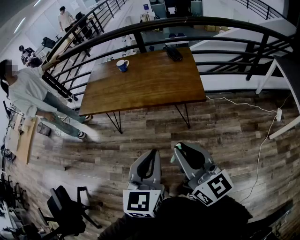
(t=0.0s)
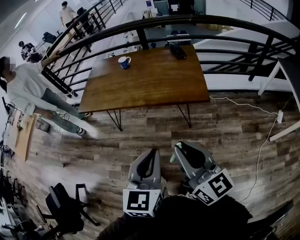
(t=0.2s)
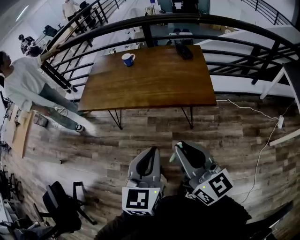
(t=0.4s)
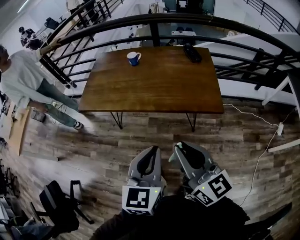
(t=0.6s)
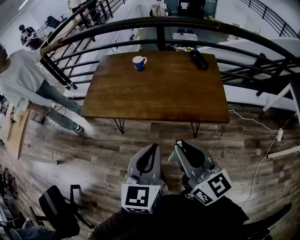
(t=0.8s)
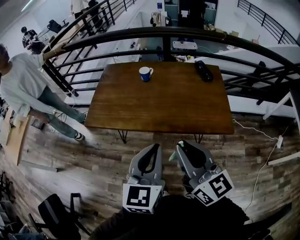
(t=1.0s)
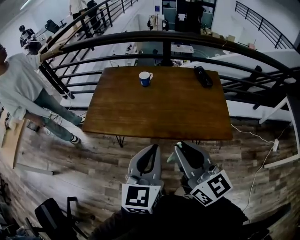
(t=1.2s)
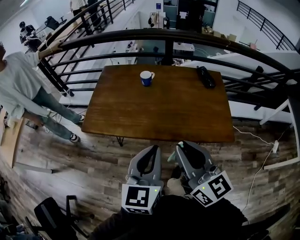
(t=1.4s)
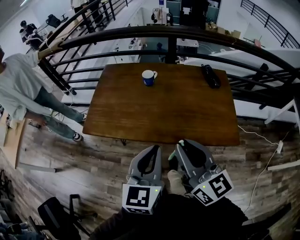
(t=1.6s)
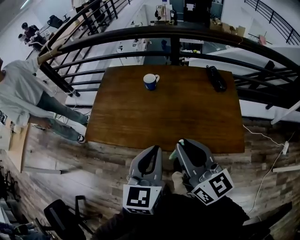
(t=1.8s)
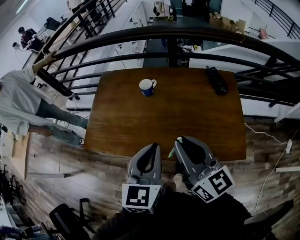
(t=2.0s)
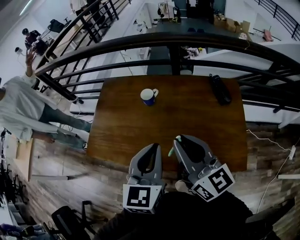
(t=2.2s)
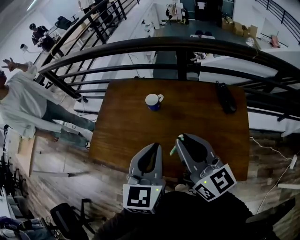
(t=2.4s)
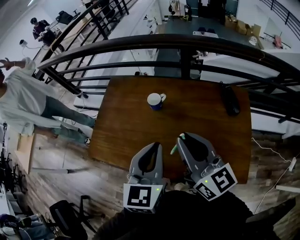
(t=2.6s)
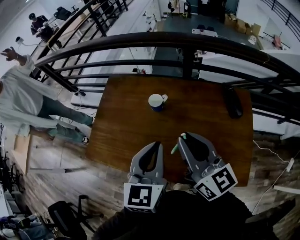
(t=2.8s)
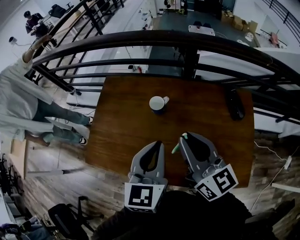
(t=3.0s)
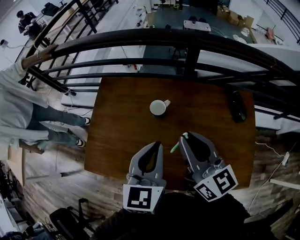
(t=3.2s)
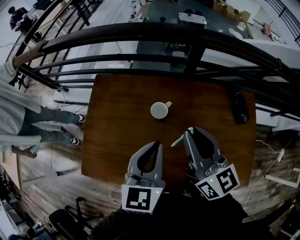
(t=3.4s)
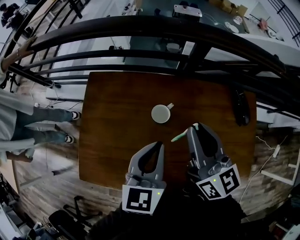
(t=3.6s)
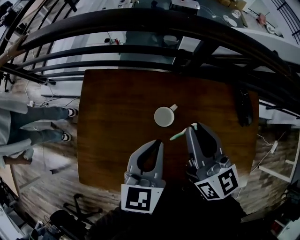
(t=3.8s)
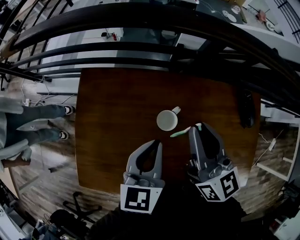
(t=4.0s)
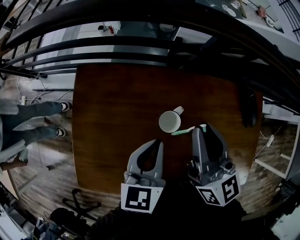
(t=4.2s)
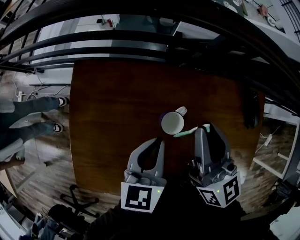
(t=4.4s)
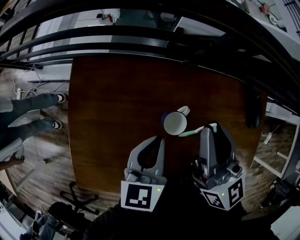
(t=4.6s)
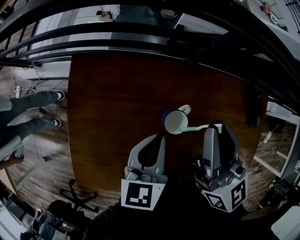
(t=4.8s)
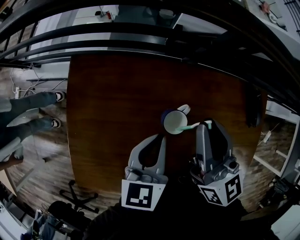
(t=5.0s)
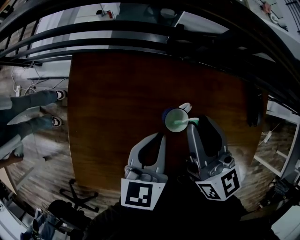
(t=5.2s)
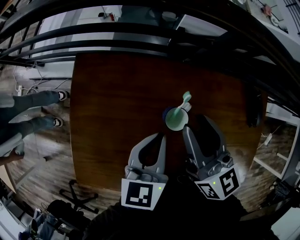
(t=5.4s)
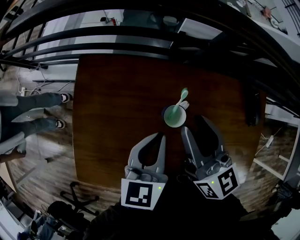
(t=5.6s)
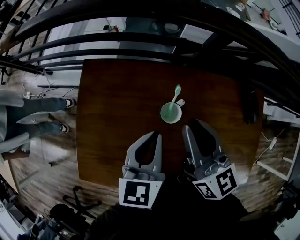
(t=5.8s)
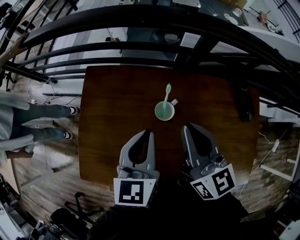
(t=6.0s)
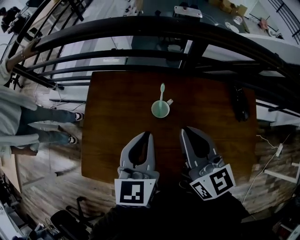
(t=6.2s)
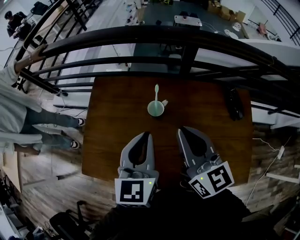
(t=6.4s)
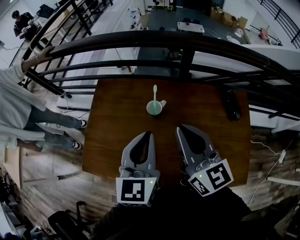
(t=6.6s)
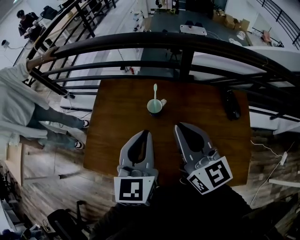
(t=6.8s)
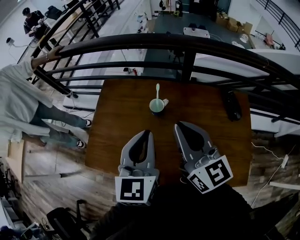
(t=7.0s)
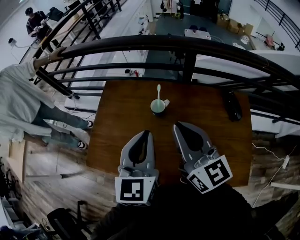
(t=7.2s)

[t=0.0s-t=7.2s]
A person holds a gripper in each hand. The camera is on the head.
t=0.0s to t=1.4s: The grippers both shift forward and to the left by about 35 cm.
t=1.4s to t=2.8s: The grippers both shift forward by about 30 cm.
t=2.8s to t=4.4s: The right gripper moves forward, roughly 25 cm. The left gripper is displaced forward, downward and to the left by roughly 30 cm, and changes its angle by some 20 degrees.
t=4.4s to t=5.8s: The grippers make only small movements.
t=5.8s to t=7.2s: The right gripper heads backward and upward, covering about 20 cm. The left gripper travels upward and backward by some 20 cm, and changes its angle by some 20 degrees.

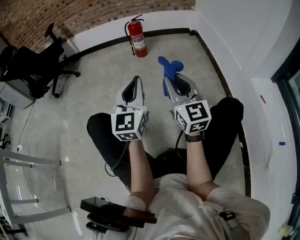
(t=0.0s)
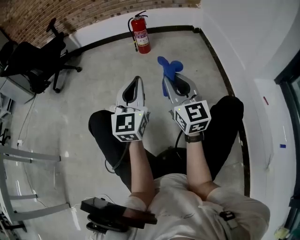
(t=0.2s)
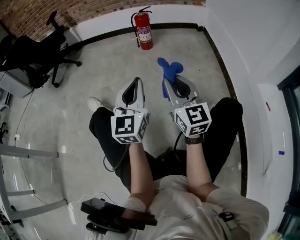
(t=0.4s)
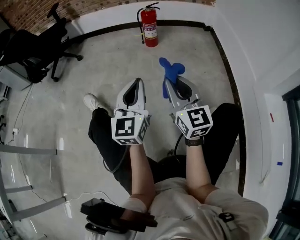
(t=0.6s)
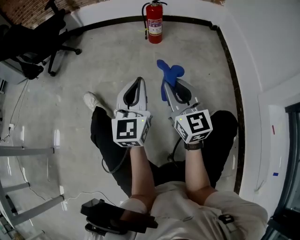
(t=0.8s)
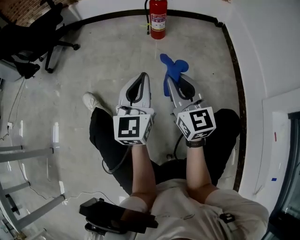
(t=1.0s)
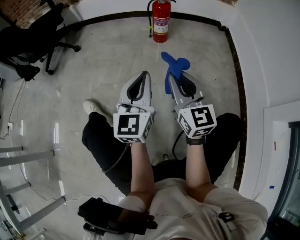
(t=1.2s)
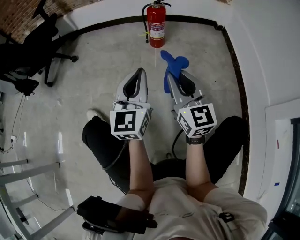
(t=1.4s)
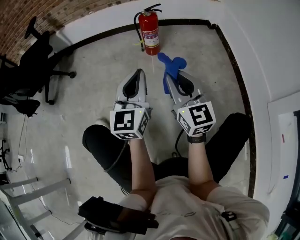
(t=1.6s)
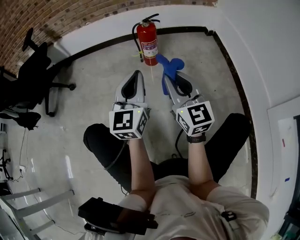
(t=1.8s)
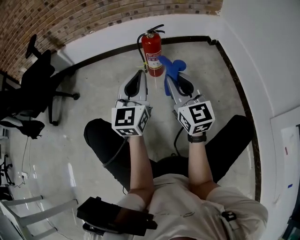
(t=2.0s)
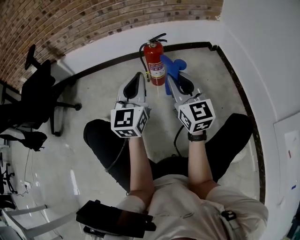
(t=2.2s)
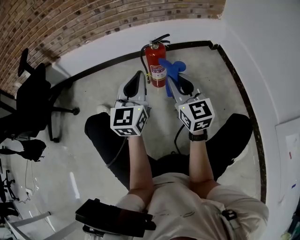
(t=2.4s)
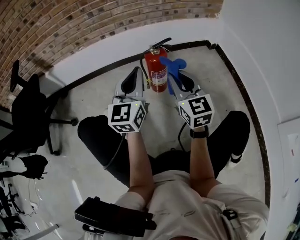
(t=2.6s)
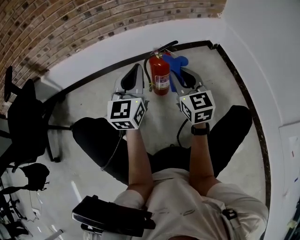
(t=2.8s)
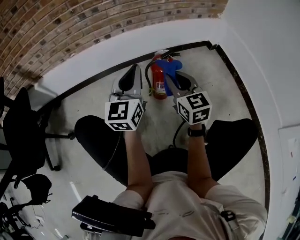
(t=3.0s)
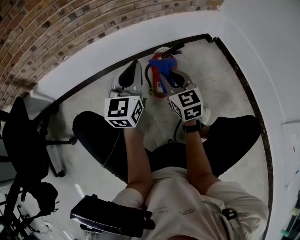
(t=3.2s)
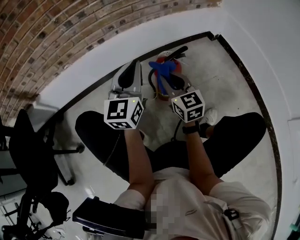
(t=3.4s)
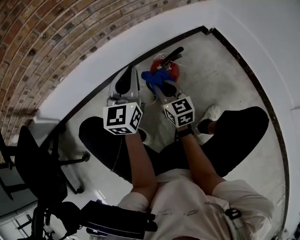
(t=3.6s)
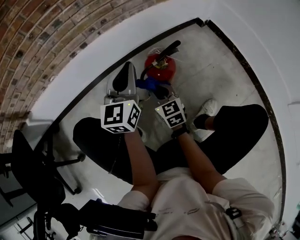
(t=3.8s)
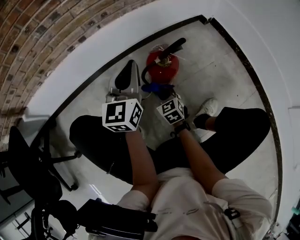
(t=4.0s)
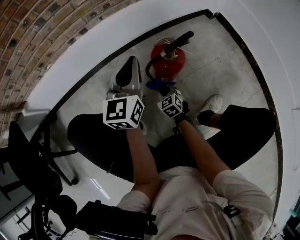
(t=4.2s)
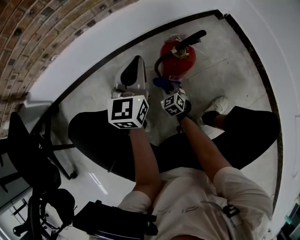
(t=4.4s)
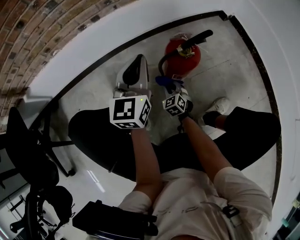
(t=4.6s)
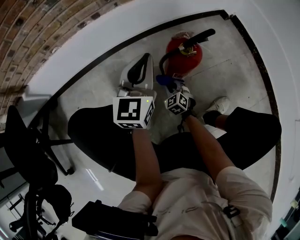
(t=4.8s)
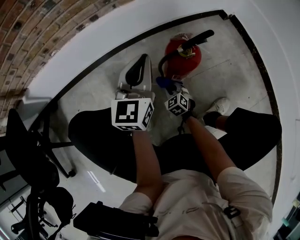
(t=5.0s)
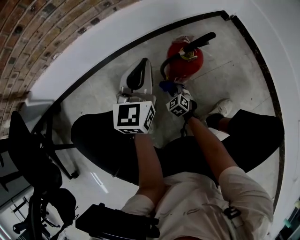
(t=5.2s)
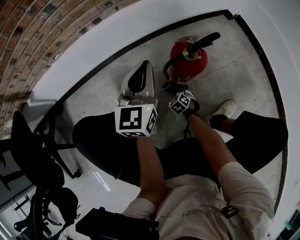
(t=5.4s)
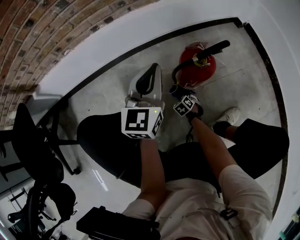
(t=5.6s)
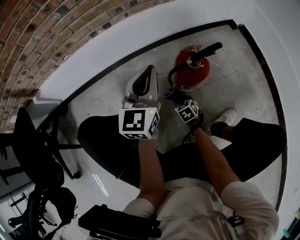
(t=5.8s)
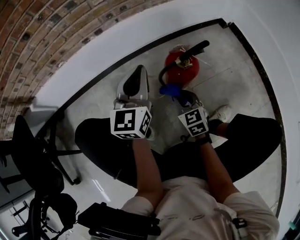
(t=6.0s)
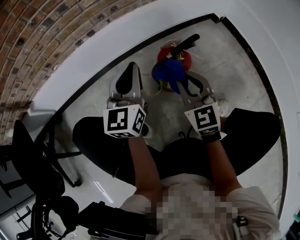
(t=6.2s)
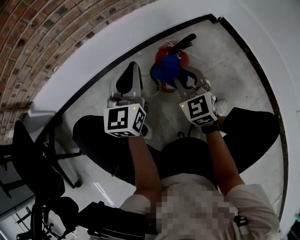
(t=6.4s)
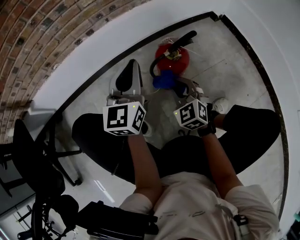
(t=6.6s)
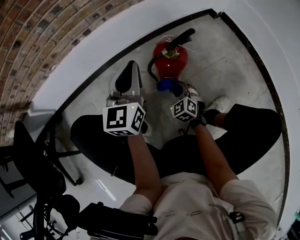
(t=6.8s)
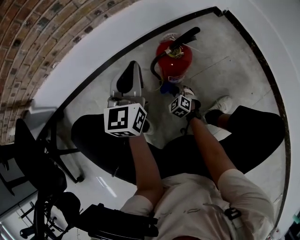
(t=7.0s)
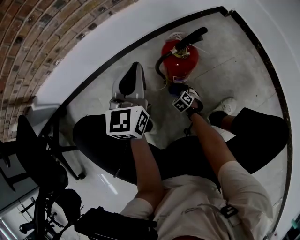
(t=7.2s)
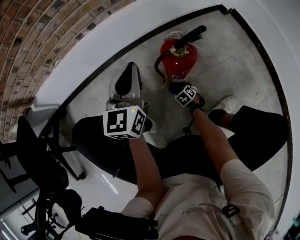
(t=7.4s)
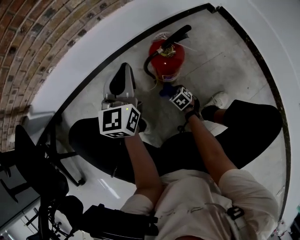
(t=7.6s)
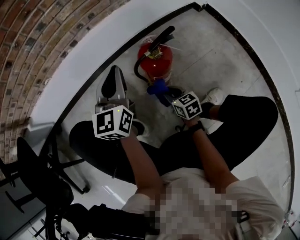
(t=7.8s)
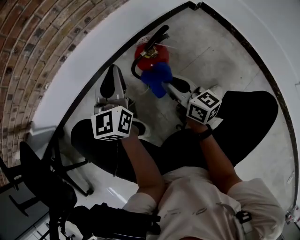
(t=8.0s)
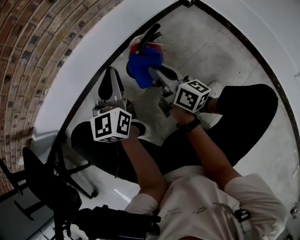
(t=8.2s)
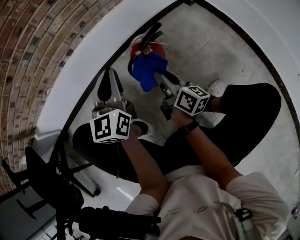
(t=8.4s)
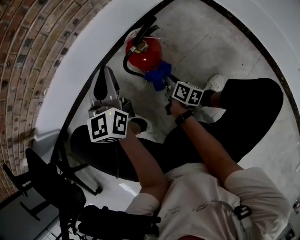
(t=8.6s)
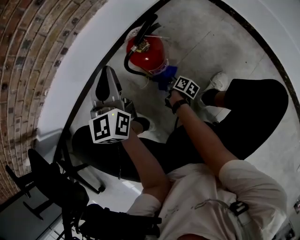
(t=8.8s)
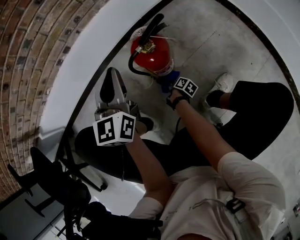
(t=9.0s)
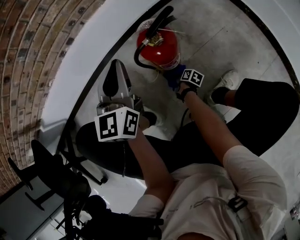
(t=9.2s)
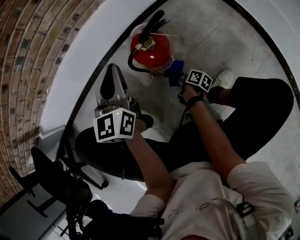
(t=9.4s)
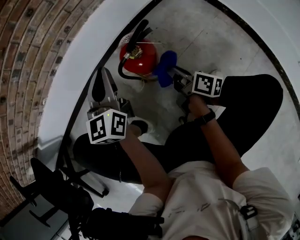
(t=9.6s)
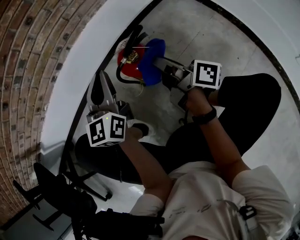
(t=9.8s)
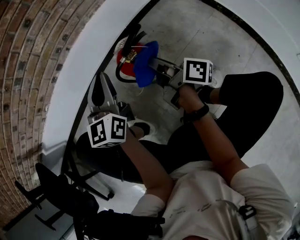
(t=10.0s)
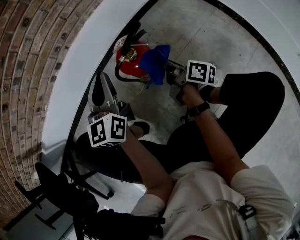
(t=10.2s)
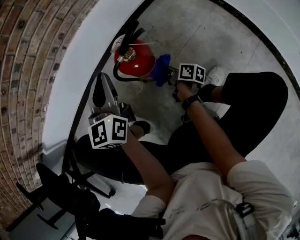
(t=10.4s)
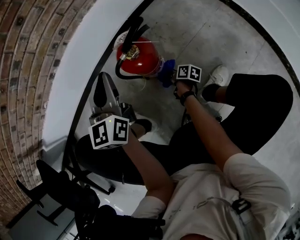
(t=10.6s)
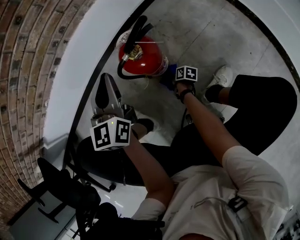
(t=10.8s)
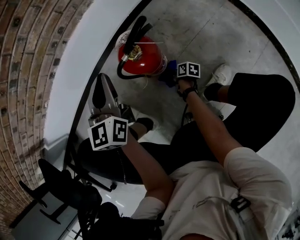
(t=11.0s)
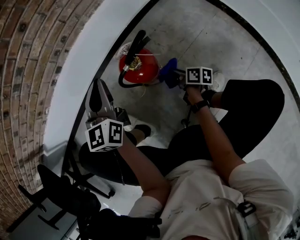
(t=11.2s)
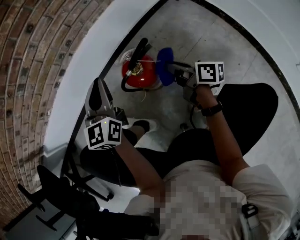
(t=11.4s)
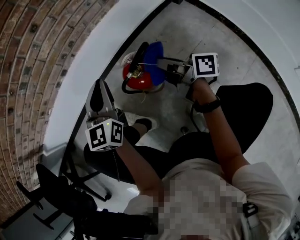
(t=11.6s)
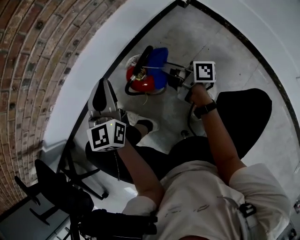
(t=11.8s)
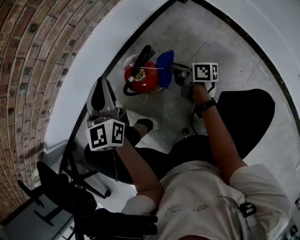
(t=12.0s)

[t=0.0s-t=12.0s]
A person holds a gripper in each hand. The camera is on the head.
t=0.0s to t=1.6s: Both grippers move forward, roughly 30 cm.
t=1.6s to t=3.0s: The pair of grippers is taken forward, roughly 40 cm.
t=3.0s to t=4.4s: The right gripper is displaced downward by approximately 40 cm, and tips its fingers downward by roughly 30 degrees, while the left gripper goes roughly 15 cm downward and forward.
t=4.4s to t=6.0s: The right gripper goes roughly 15 cm upward.
t=6.0s to t=7.6s: The right gripper swings up and down, roughly 40 cm each way, with 2 reversals, and changes its angle by some 30 degrees.
t=7.6s to t=9.0s: The right gripper goes upward and returns, roughly 35 cm each way, and twists approximately 90 degrees clockwise, seen from behind.
t=9.0s to t=10.4s: The right gripper moves upward, roughly 20 cm, and changes its angle by some 30 degrees.
t=10.4s to t=12.0s: The right gripper swings up and down, some 50 cm each way, with 2 reversals, and turns by roughly 20 degrees; the left gripper moves some 5 cm.

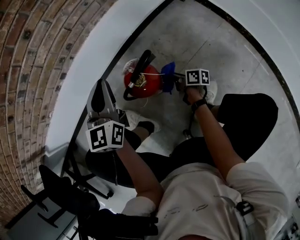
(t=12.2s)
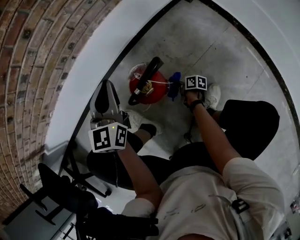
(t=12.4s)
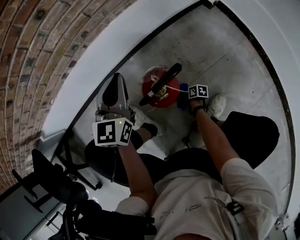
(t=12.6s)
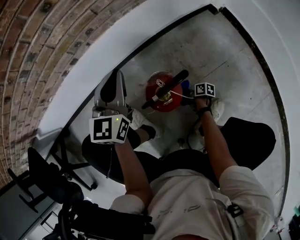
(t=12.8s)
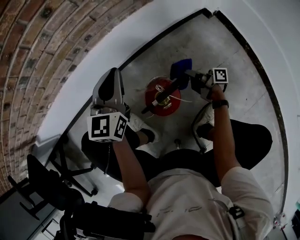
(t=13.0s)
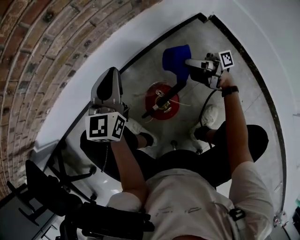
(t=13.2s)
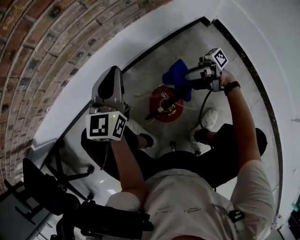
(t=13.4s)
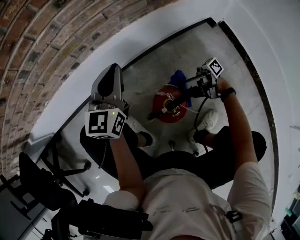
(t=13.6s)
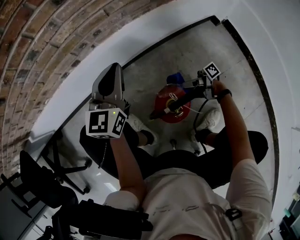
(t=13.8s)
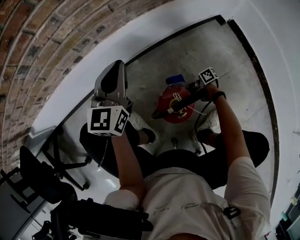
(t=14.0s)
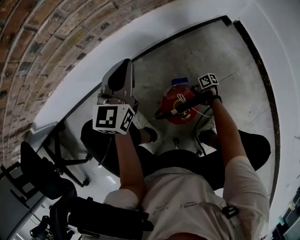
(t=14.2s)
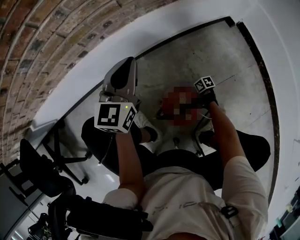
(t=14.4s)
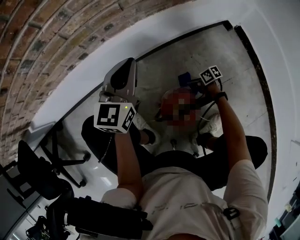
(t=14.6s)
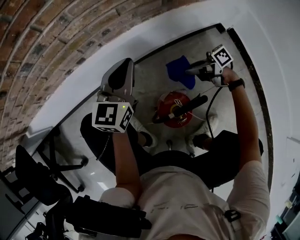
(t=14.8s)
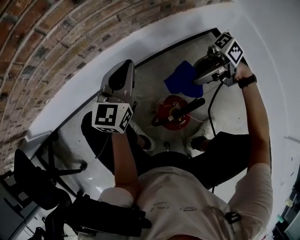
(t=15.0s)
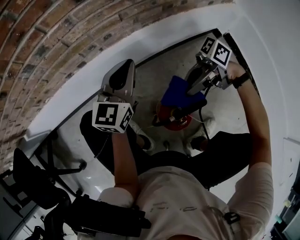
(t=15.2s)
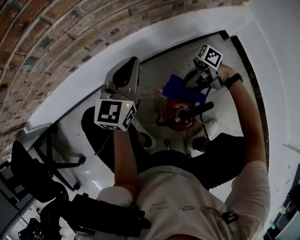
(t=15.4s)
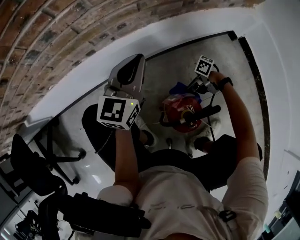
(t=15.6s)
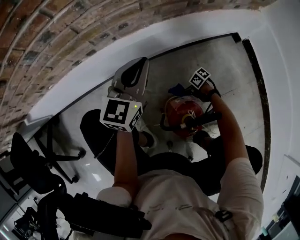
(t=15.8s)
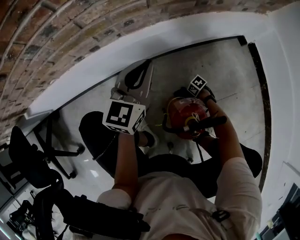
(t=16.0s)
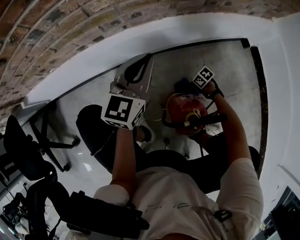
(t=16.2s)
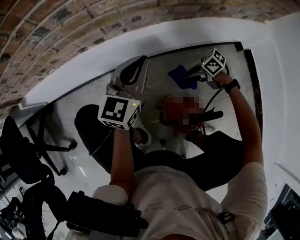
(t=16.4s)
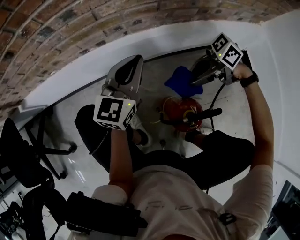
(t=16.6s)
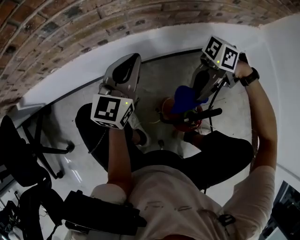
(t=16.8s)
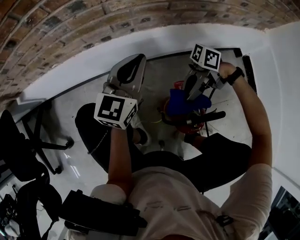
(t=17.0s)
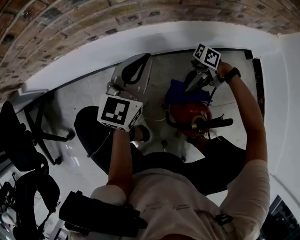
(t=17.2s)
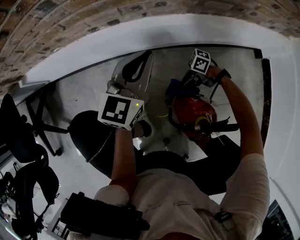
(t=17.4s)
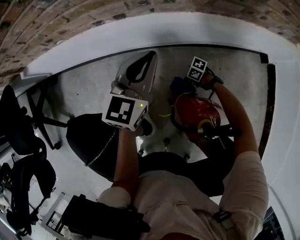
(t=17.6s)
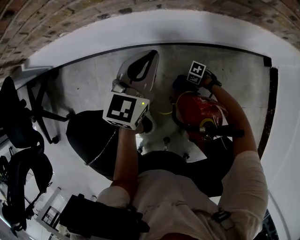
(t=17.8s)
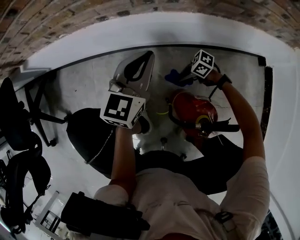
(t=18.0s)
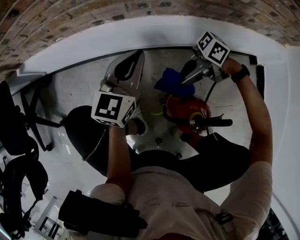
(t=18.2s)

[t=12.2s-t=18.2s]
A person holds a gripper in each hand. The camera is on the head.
t=12.2s to t=13.8s: The right gripper goes up and down, about 40 cm each way, reversing 2 times, and rotates about 60 degrees; the left gripper changes place by some 15 cm.
t=13.8s to t=15.2s: The right gripper goes about 20 cm upward, and turns by approximately 50 degrees.
t=15.2s to t=16.6s: The left gripper changes place by some 5 cm; the right gripper travels downward and back again, roughly 50 cm each way.
t=16.6s to t=18.2s: The right gripper moves roughly 40 cm downward and comes back; the left gripper moves approximately 5 cm.
